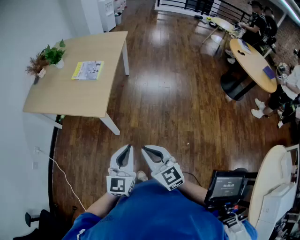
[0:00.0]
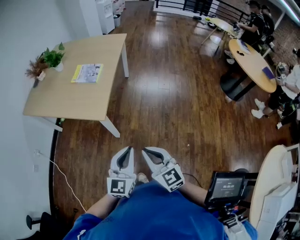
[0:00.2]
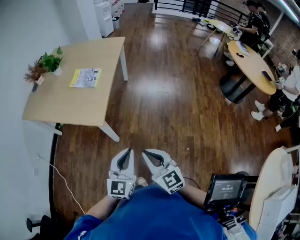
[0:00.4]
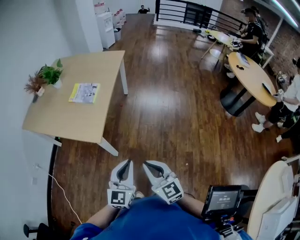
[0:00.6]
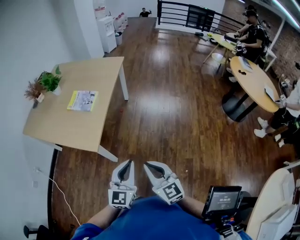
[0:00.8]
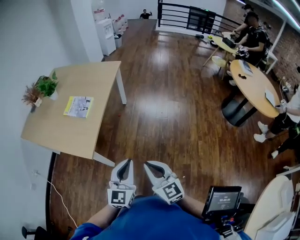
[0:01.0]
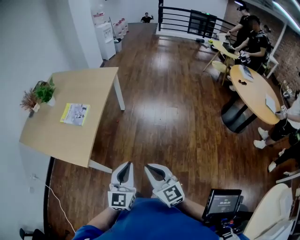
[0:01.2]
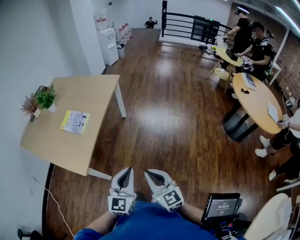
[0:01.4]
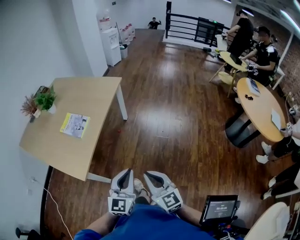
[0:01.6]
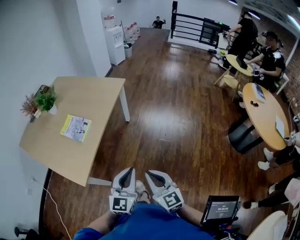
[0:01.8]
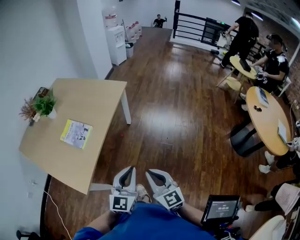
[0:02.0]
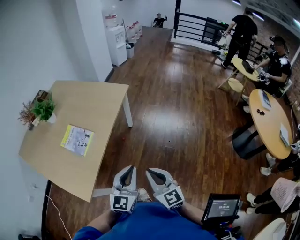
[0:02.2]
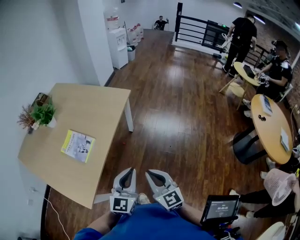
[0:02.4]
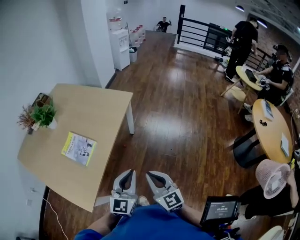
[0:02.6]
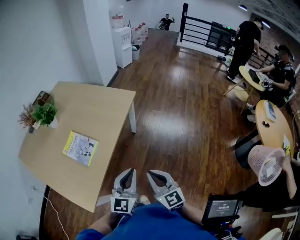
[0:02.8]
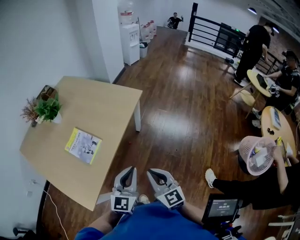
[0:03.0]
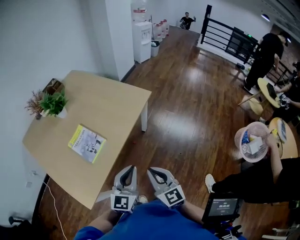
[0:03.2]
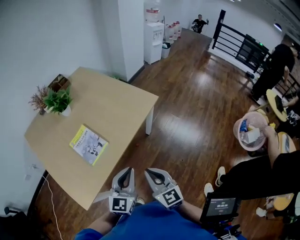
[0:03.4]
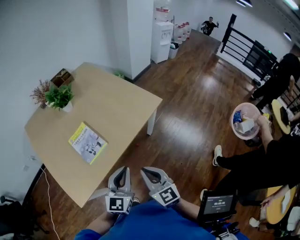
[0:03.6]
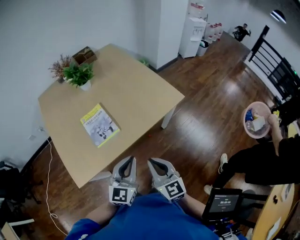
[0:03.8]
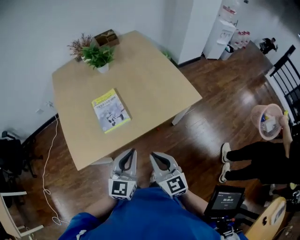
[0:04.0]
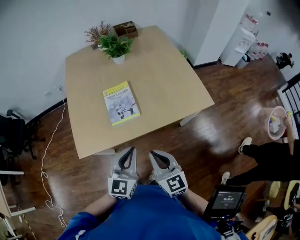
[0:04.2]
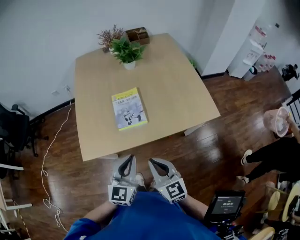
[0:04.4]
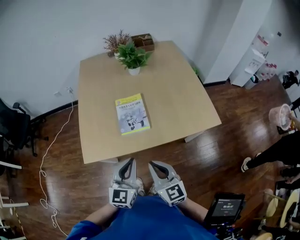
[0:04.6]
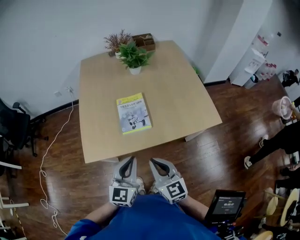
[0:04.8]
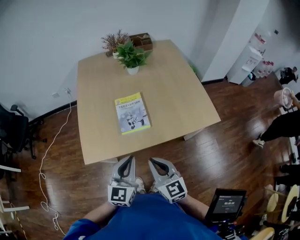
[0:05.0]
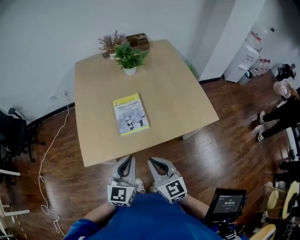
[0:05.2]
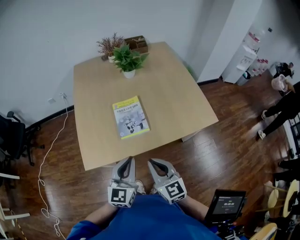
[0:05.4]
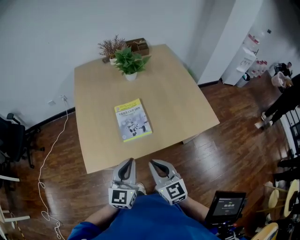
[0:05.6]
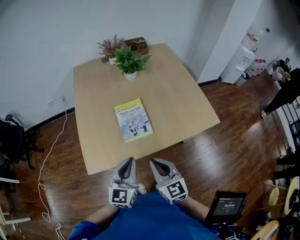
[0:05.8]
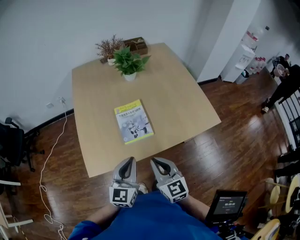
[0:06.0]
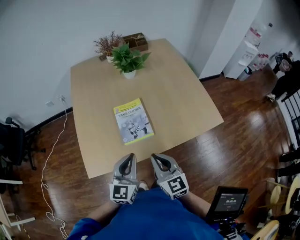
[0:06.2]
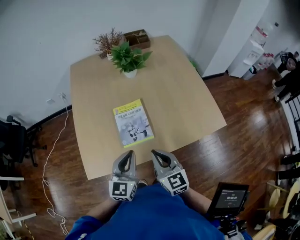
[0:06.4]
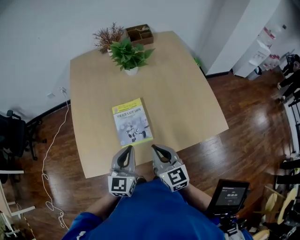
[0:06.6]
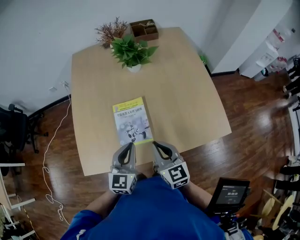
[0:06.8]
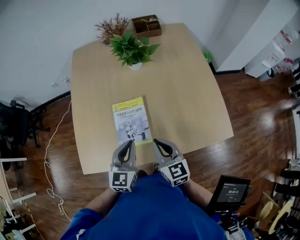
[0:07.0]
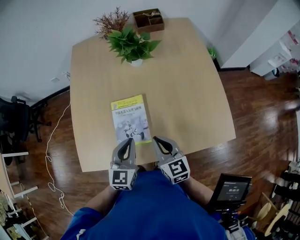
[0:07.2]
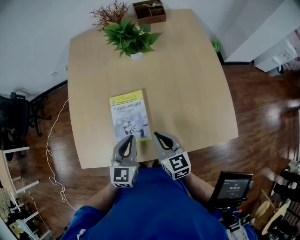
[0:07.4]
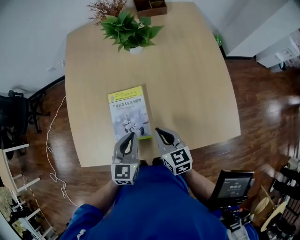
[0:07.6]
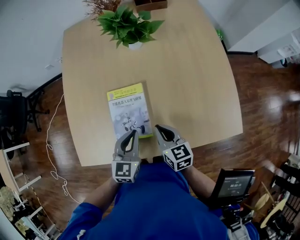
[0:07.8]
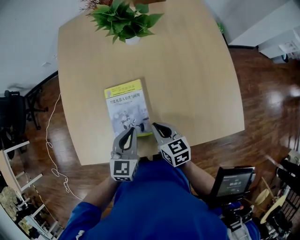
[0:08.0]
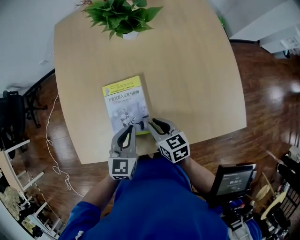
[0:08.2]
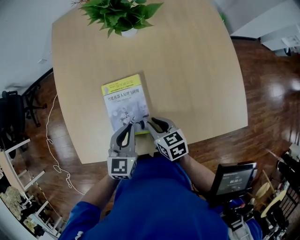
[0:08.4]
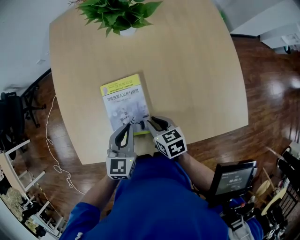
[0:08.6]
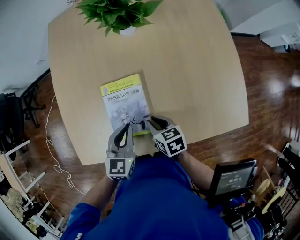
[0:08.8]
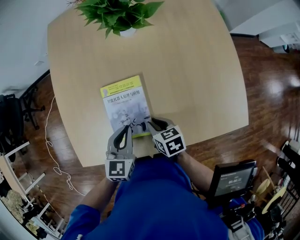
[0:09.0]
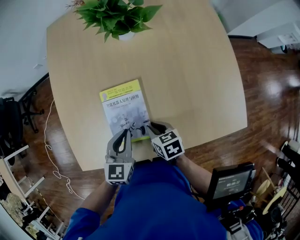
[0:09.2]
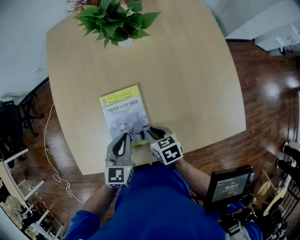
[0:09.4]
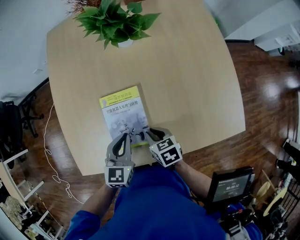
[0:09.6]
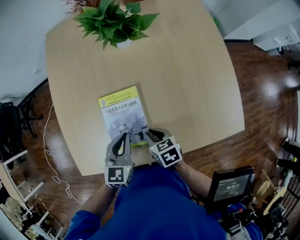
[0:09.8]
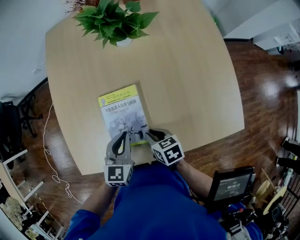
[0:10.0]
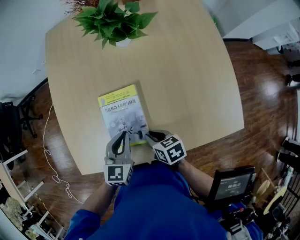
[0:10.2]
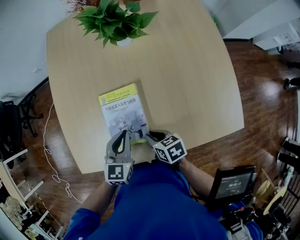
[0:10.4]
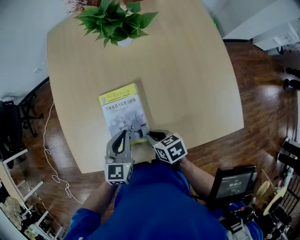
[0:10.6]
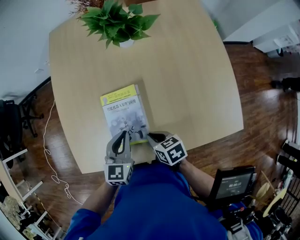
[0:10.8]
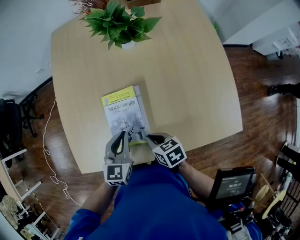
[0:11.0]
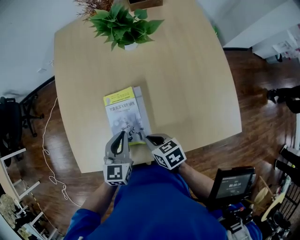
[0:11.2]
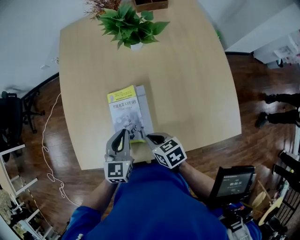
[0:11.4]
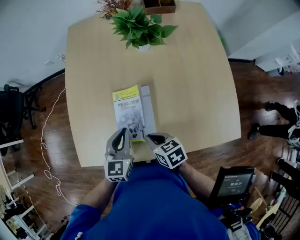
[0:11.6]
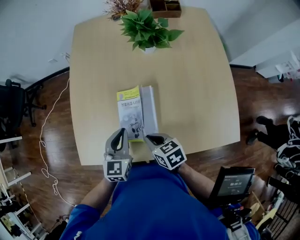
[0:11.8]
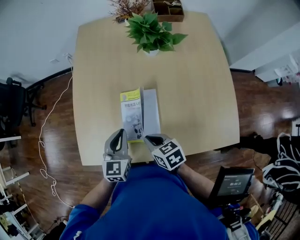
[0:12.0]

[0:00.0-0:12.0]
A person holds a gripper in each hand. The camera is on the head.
0.0 to 1.6 s: Both grippers travel together forward and to the right, roughly 35 cm.
1.6 to 3.0 s: Both grippers travel together forward, about 30 cm.
3.0 to 4.4 s: The left gripper changes place by approximately 15 cm, and changes its angle by about 50 degrees. Meanwhile the right gripper moves roughly 15 cm, and turns by about 50 degrees.
4.4 to 6.0 s: The left gripper travels forward and to the left by about 10 cm. The right gripper heads forward, covering about 5 cm.
6.0 to 7.6 s: The two grippers go about 25 cm forward, downward and to the right. The left gripper changes its angle by roughly 20 degrees; the right gripper turns by approximately 20 degrees.
7.6 to 9.0 s: The right gripper shifts some 10 cm downward, and rotates some 30 degrees. The left gripper moves some 5 cm.
9.0 to 10.4 s: The grippers stay close to where they were, moving slightly.
10.4 to 12.0 s: The right gripper heads upward and to the left, covering some 10 cm. The left gripper heads to the left, covering roughly 10 cm.

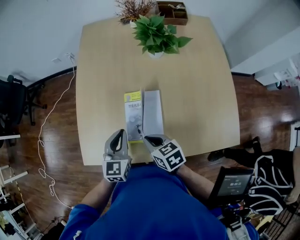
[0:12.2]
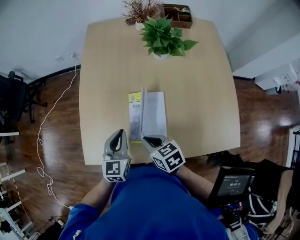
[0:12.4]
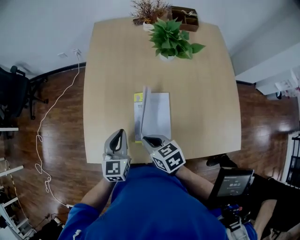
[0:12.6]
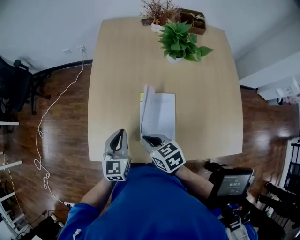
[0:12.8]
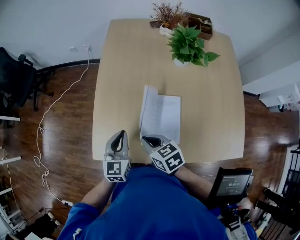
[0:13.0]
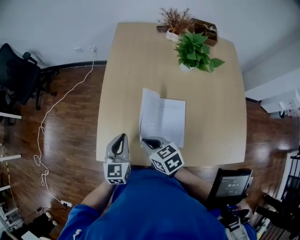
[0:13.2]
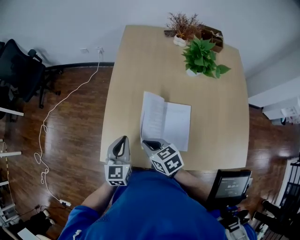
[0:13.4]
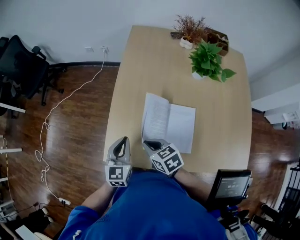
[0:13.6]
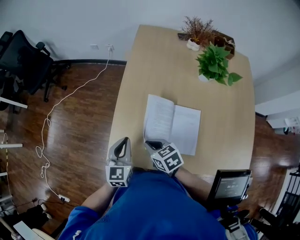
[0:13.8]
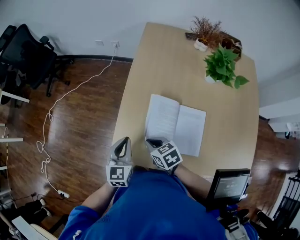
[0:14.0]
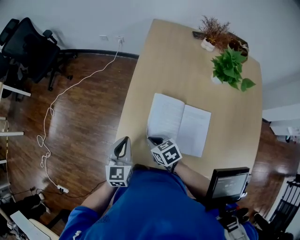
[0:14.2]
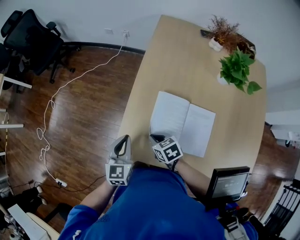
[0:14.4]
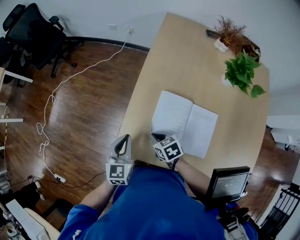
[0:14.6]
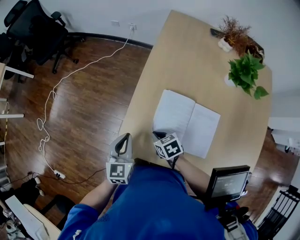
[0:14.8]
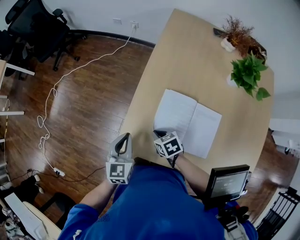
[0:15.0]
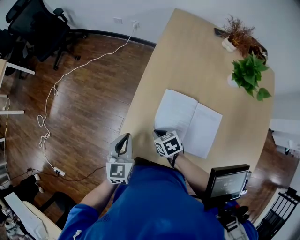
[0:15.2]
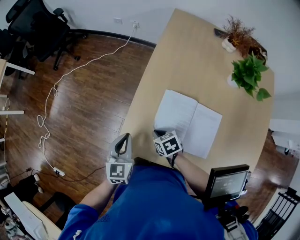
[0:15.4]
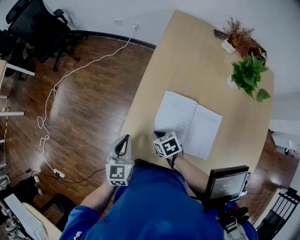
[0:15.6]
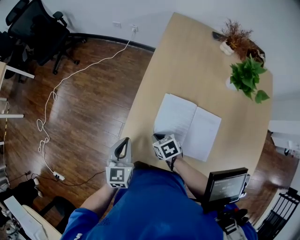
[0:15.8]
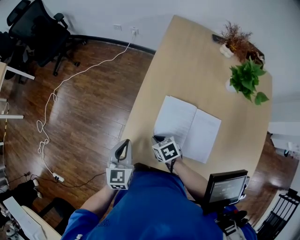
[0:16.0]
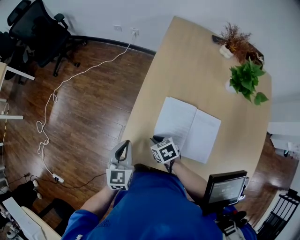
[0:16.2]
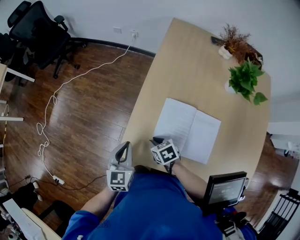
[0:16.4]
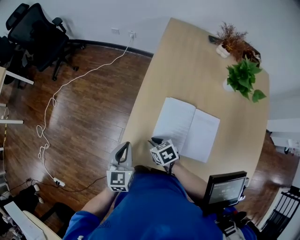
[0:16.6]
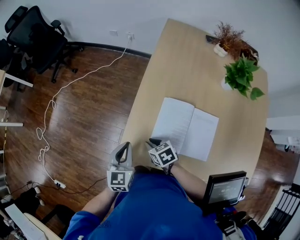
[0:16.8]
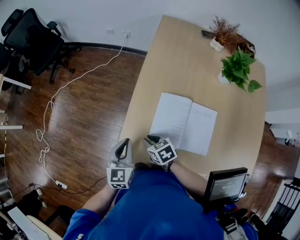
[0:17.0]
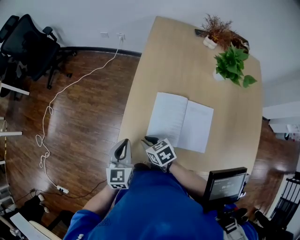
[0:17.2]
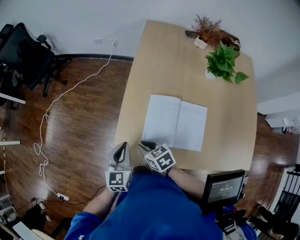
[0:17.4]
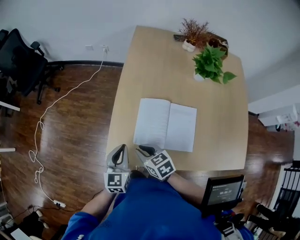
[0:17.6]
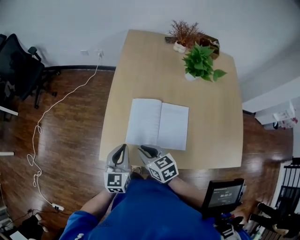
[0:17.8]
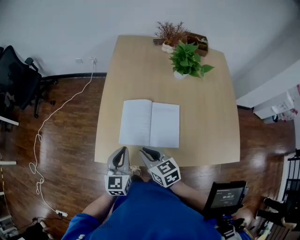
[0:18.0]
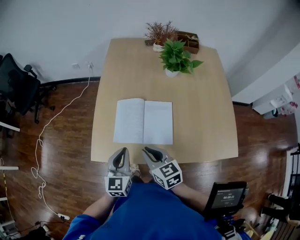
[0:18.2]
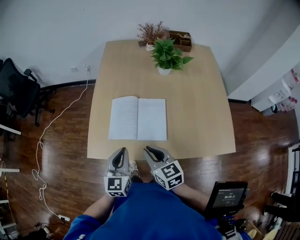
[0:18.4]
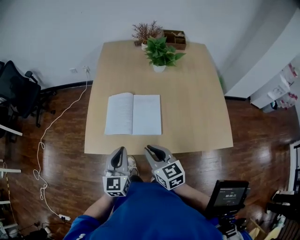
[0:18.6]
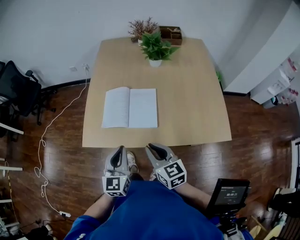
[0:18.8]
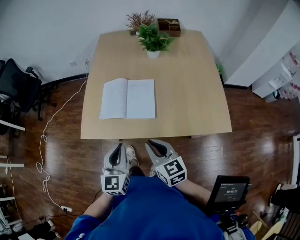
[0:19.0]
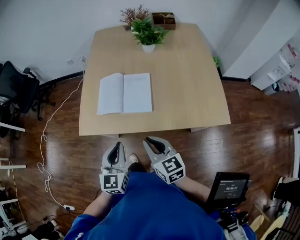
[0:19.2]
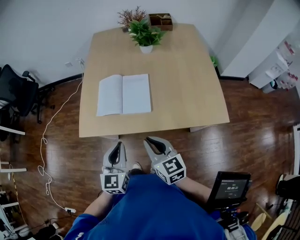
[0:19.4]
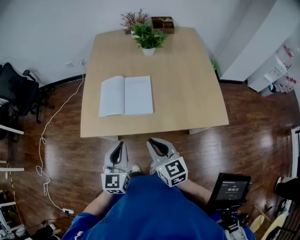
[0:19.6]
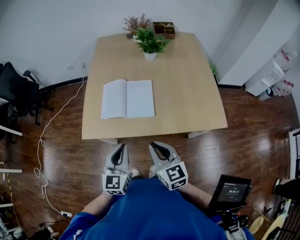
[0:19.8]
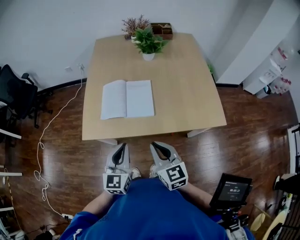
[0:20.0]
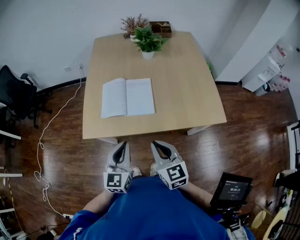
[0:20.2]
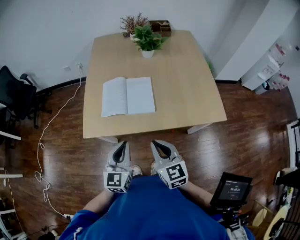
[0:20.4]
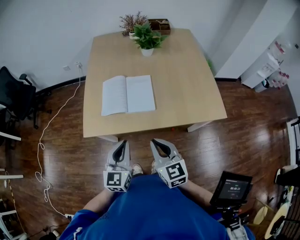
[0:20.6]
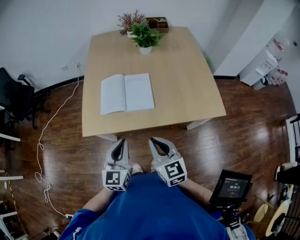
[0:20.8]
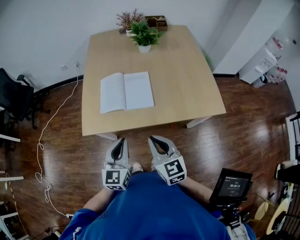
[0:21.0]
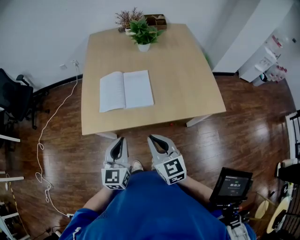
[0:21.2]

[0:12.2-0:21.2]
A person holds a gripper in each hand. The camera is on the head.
12.2 to 13.8 s: The left gripper moves to the left, about 20 cm. The right gripper is displaced to the left and forward by about 20 cm.
13.8 to 15.2 s: The right gripper moves downward, some 10 cm. Meanwhile the left gripper is displaced to the left by some 10 cm.
15.2 to 16.6 s: There are only small adjustments of the grippers.
16.6 to 18.2 s: The right gripper shifts by approximately 25 cm, and changes its angle by some 40 degrees. Meanwhile the left gripper changes place by some 20 cm.
18.2 to 19.8 s: The right gripper goes approximately 20 cm backward and to the right. The left gripper goes approximately 15 cm backward.
19.8 to 21.2 s: The grippers stay close to where they were, moving slightly.

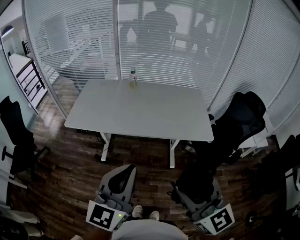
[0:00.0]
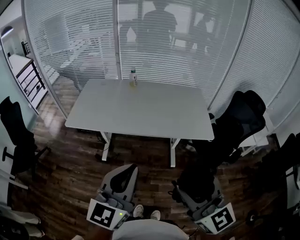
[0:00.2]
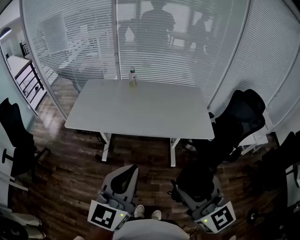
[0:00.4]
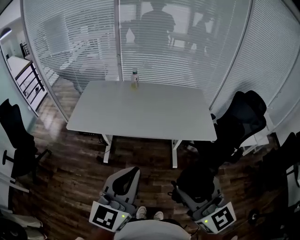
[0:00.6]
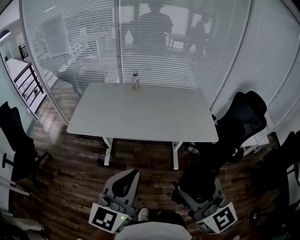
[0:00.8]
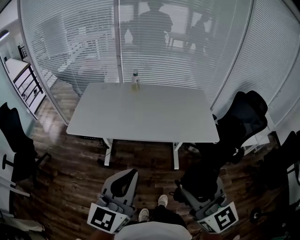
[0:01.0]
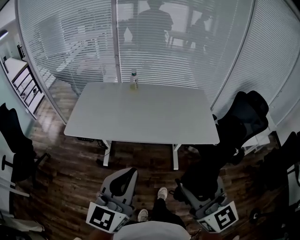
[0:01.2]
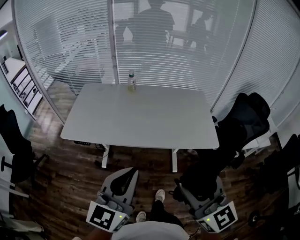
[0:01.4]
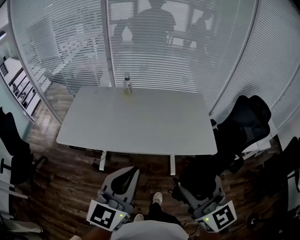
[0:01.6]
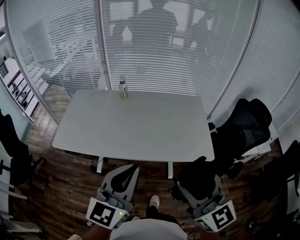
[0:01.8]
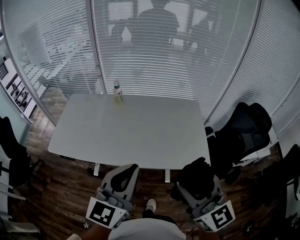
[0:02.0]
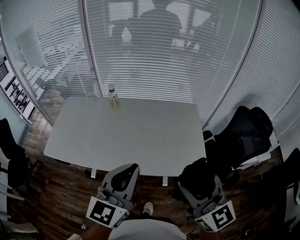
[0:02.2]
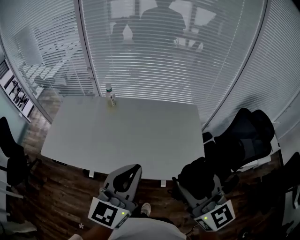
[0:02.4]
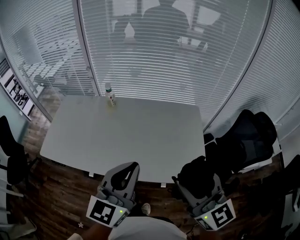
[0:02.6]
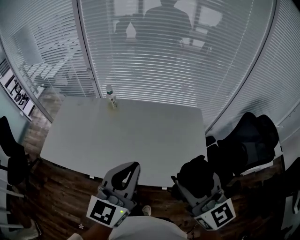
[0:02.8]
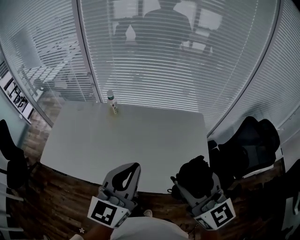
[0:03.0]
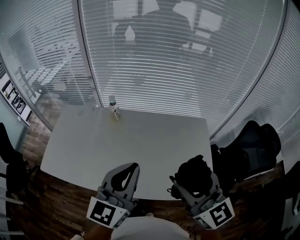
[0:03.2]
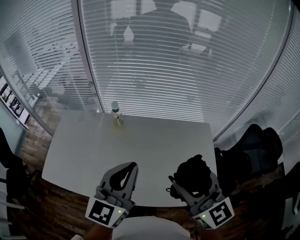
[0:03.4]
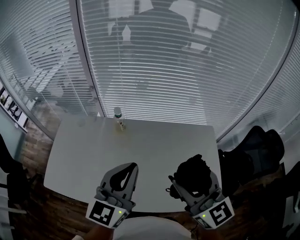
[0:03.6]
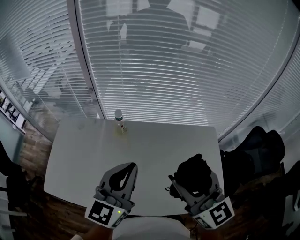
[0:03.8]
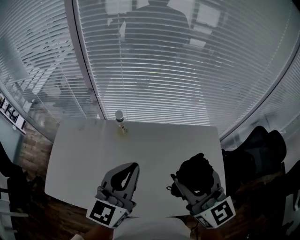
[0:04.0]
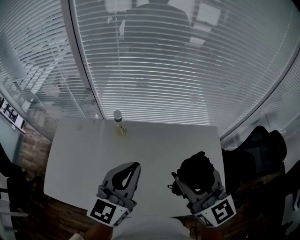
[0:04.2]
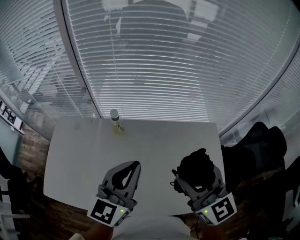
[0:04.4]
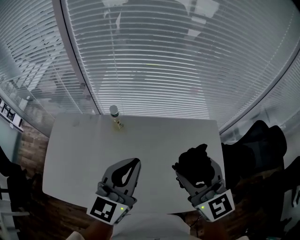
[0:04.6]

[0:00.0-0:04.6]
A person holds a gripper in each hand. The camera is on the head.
0.0 to 1.6 s: The grippers both shift forward by about 15 cm.
1.6 to 3.0 s: The grippers both shift forward and to the right by roughly 30 cm.
3.0 to 4.6 s: Both grippers move forward and to the left, approximately 25 cm.
